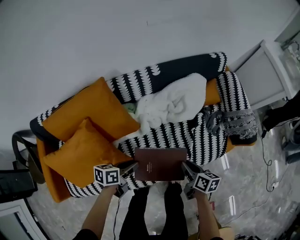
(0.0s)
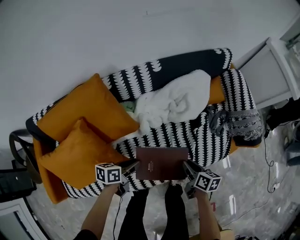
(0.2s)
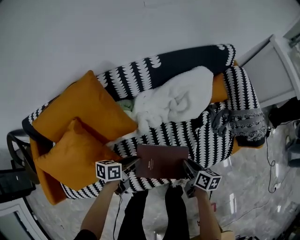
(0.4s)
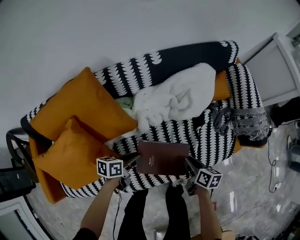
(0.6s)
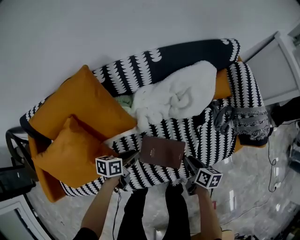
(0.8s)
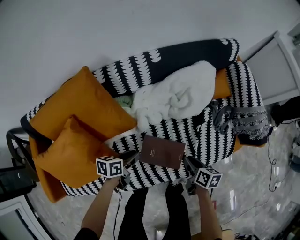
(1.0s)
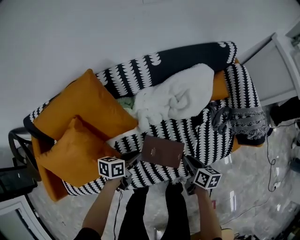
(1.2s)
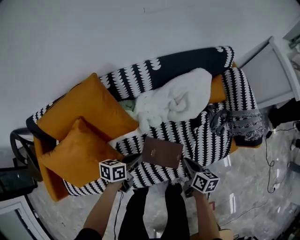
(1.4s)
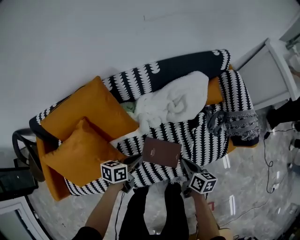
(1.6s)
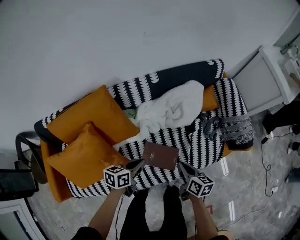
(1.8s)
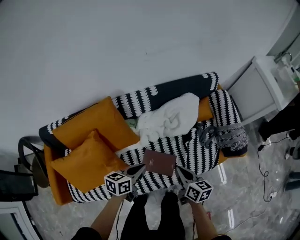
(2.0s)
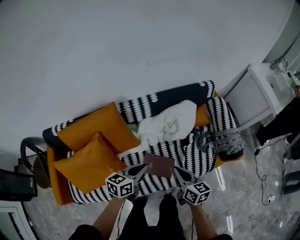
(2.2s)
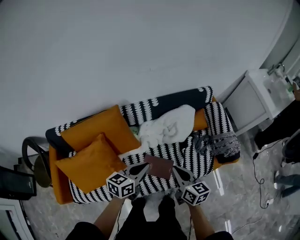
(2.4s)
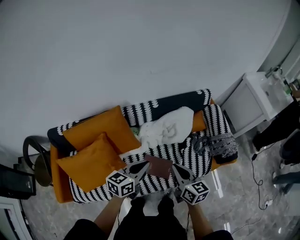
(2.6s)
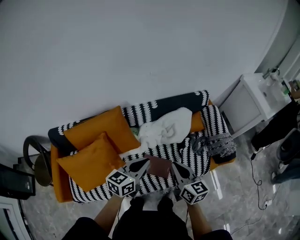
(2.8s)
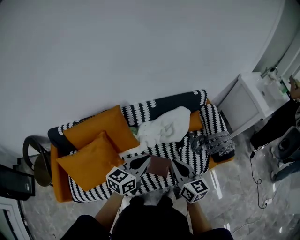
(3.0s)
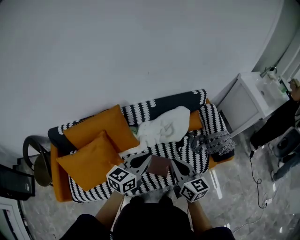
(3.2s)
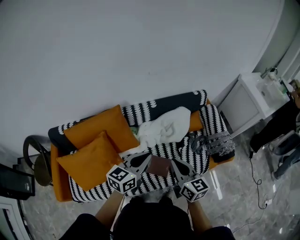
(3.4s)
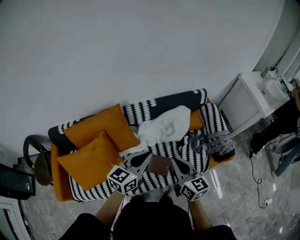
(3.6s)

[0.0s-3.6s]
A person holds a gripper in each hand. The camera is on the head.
0.0s to 1.8s: The right gripper goes downward and returns, approximately 15 cm each way, and closes; the left gripper travels downward and back again, approximately 15 cm each way, and closes.
1.8s to 3.6s: The two grippers go some 30 cm upward. The right gripper swivels approximately 30 degrees. Meanwhile the left gripper turns by approximately 40 degrees.

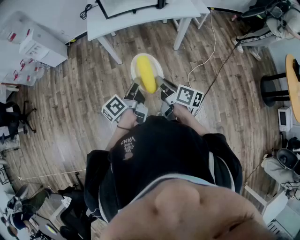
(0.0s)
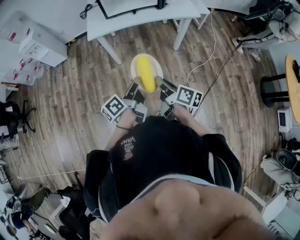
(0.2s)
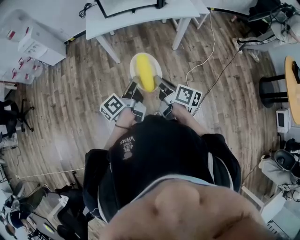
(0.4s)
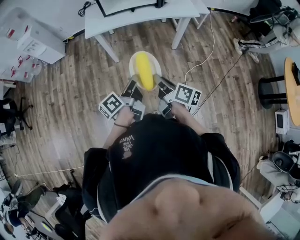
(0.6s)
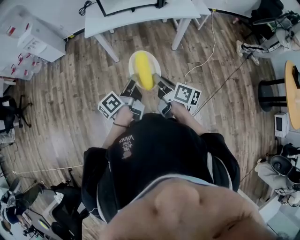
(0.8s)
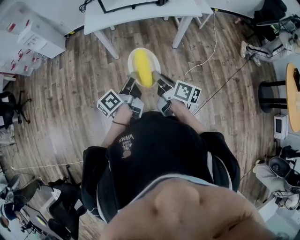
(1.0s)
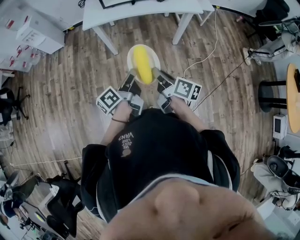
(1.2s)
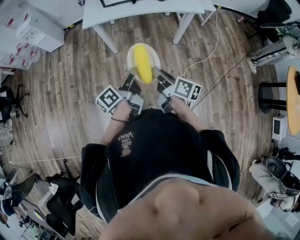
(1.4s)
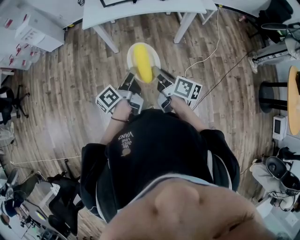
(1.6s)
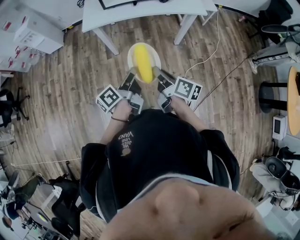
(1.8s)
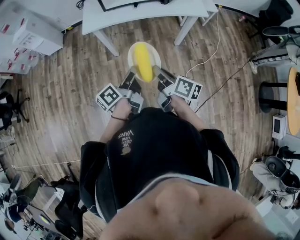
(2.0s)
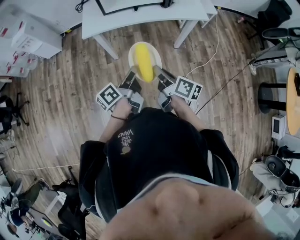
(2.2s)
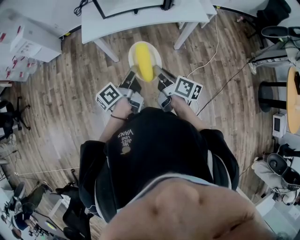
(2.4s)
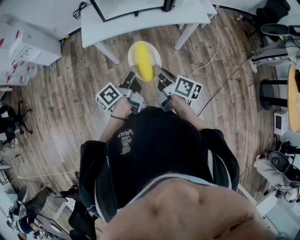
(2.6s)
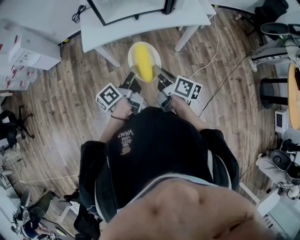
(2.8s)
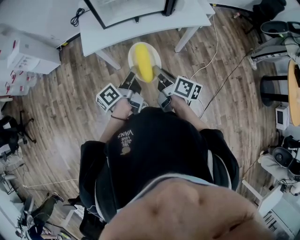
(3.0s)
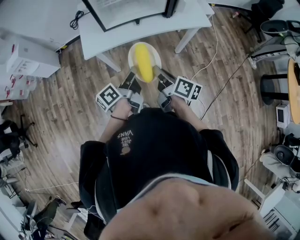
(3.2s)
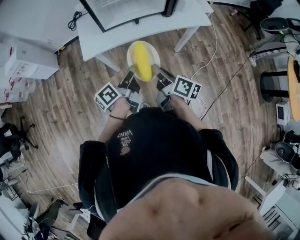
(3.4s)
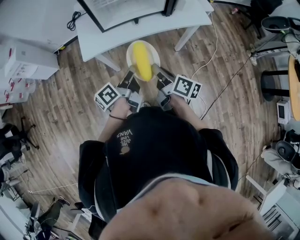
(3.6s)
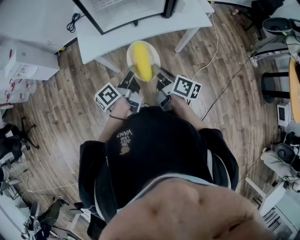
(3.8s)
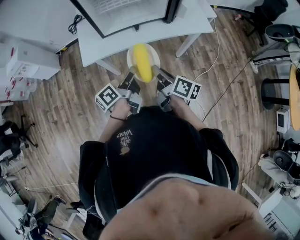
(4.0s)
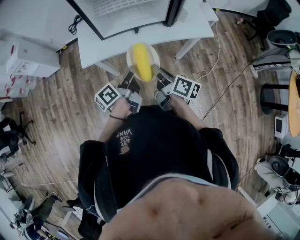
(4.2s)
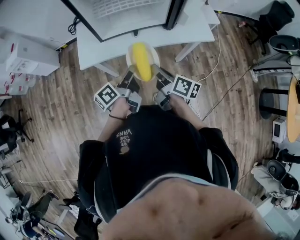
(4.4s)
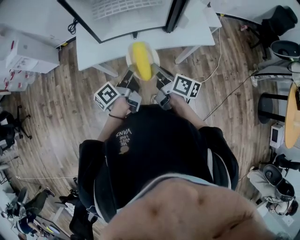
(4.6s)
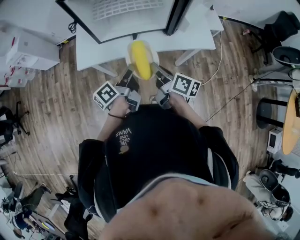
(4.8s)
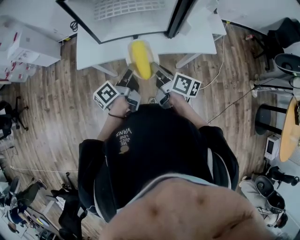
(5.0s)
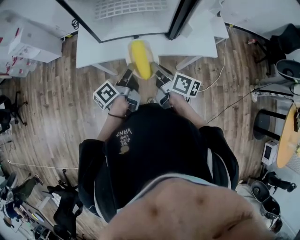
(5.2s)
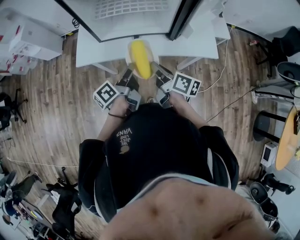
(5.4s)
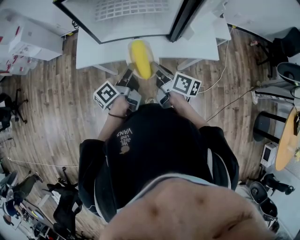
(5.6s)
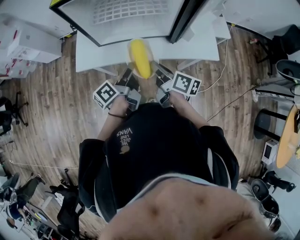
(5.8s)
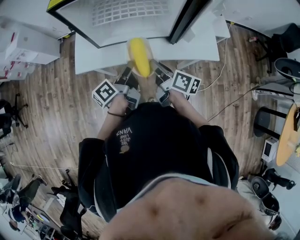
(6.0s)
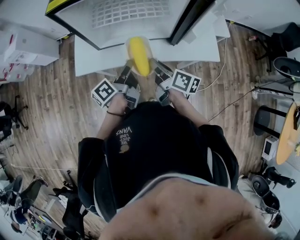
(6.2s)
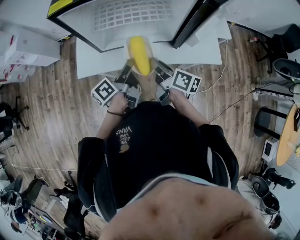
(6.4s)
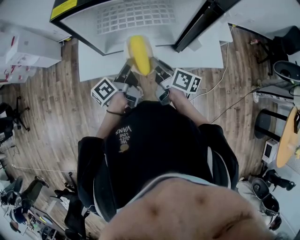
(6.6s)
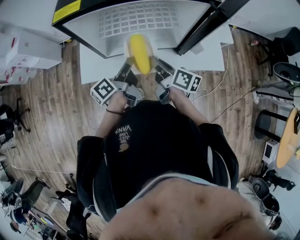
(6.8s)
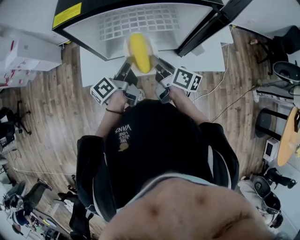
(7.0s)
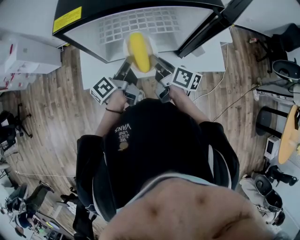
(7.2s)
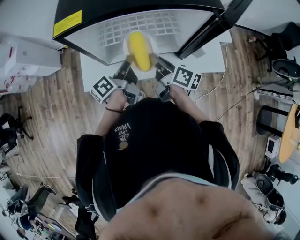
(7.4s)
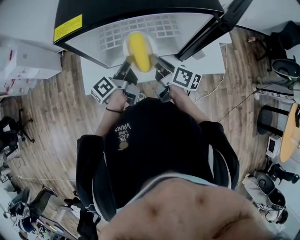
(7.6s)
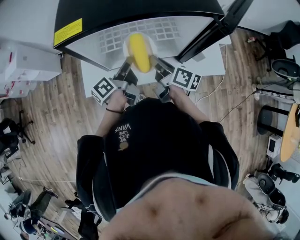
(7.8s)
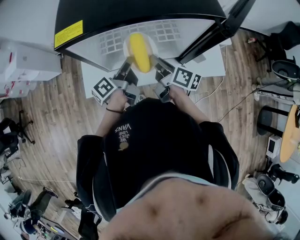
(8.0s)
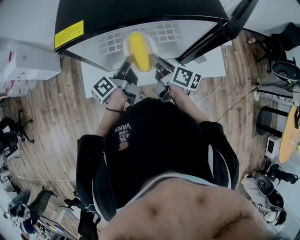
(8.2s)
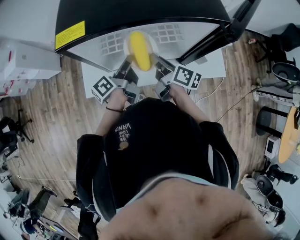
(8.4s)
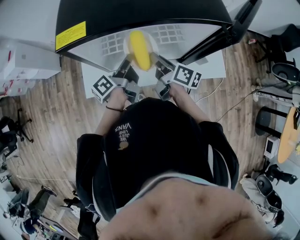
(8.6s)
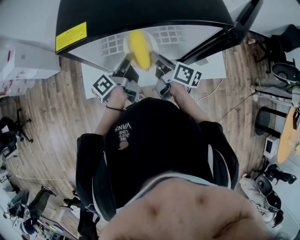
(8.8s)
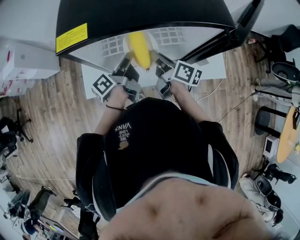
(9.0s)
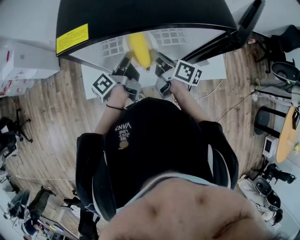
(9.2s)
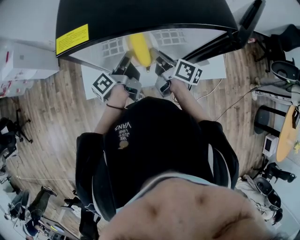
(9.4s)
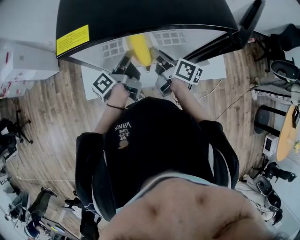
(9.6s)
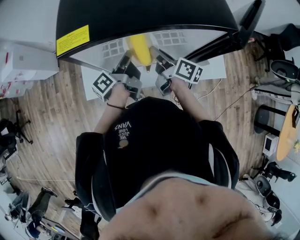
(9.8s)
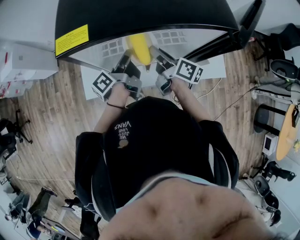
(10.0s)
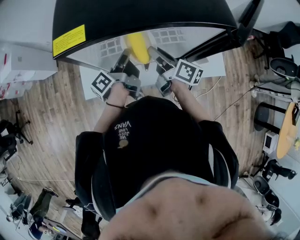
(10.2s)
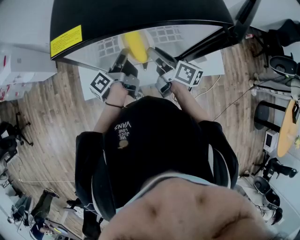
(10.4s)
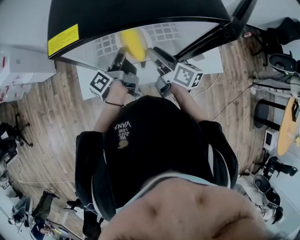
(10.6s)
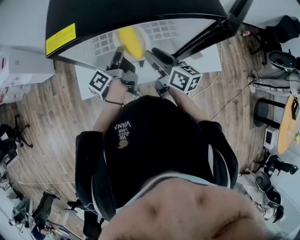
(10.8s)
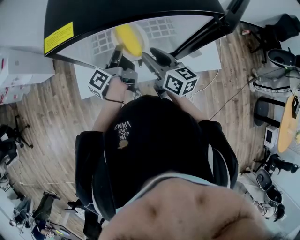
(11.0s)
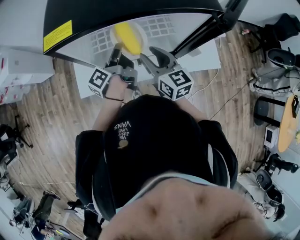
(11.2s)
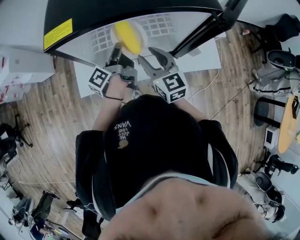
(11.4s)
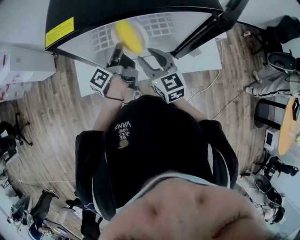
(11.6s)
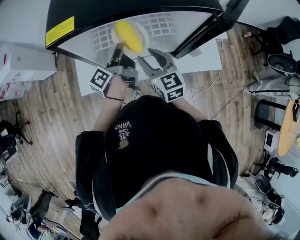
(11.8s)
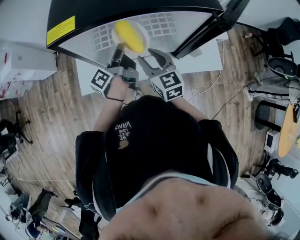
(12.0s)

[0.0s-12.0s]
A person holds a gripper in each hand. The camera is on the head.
0.0s to 1.6s: The right gripper changes place by about 5 cm.
1.6s to 3.0s: The right gripper shifts by about 20 cm.
3.0s to 4.4s: The right gripper shifts by roughly 15 cm.
4.4s to 6.0s: The right gripper changes place by approximately 15 cm.
6.0s to 7.6s: The right gripper moves about 15 cm.
9.0s to 10.4s: The right gripper opens up.
10.4s to 12.0s: The right gripper ends up about 5 cm from where it was, and twists about 50 degrees counterclockwise, seen from behind.

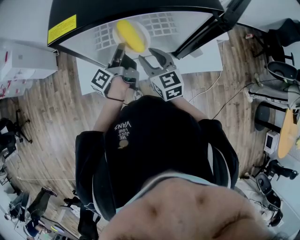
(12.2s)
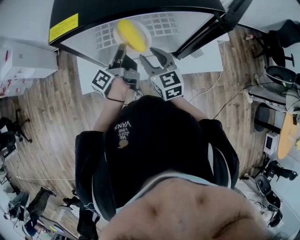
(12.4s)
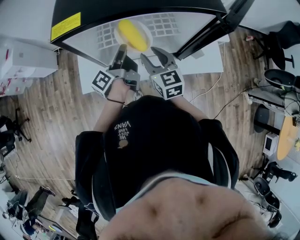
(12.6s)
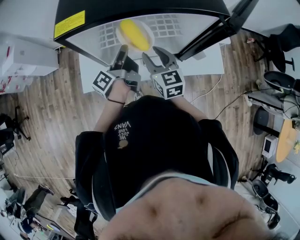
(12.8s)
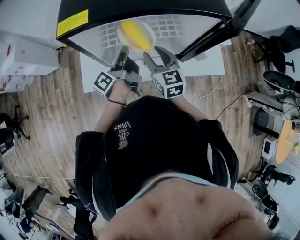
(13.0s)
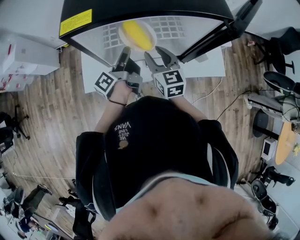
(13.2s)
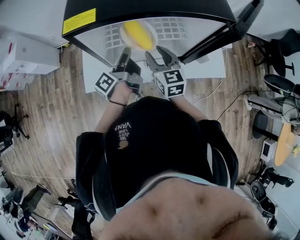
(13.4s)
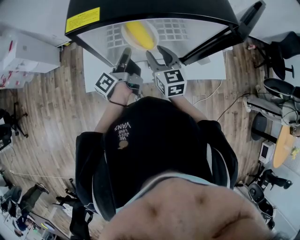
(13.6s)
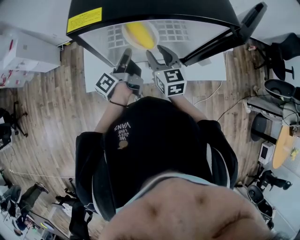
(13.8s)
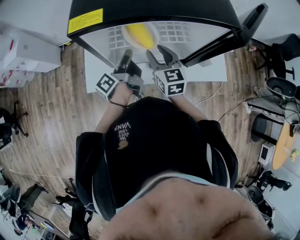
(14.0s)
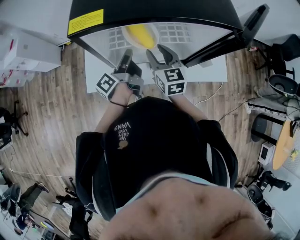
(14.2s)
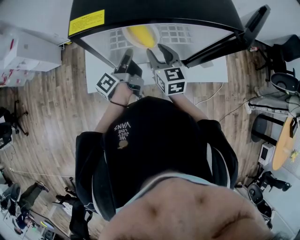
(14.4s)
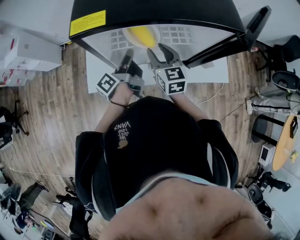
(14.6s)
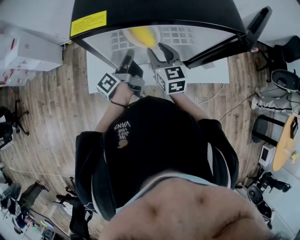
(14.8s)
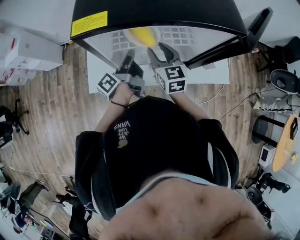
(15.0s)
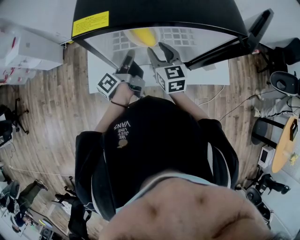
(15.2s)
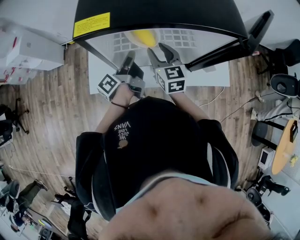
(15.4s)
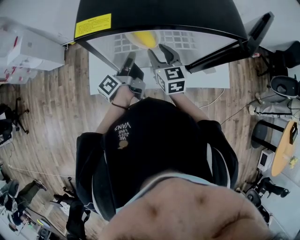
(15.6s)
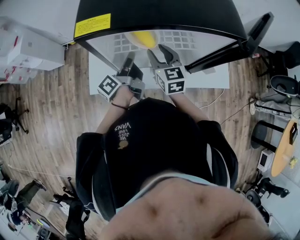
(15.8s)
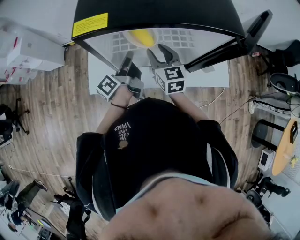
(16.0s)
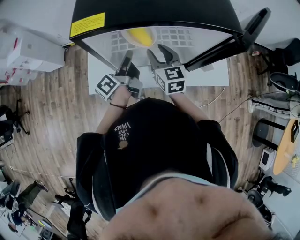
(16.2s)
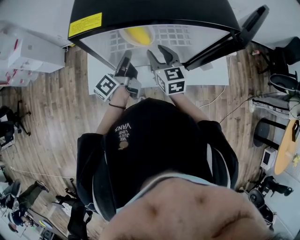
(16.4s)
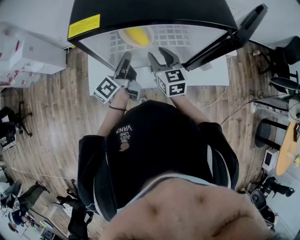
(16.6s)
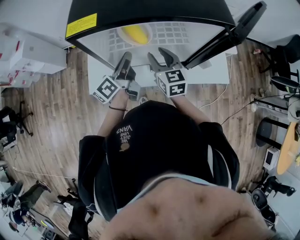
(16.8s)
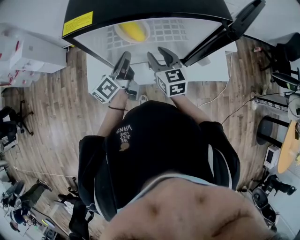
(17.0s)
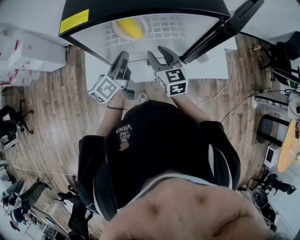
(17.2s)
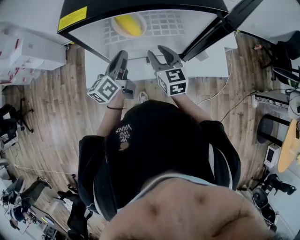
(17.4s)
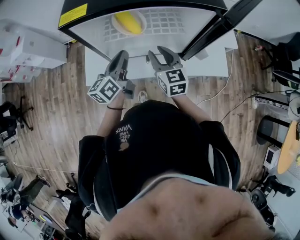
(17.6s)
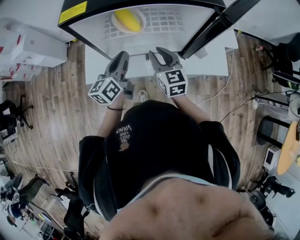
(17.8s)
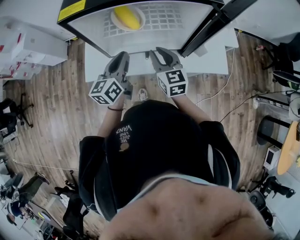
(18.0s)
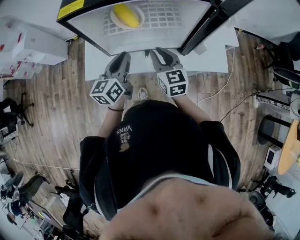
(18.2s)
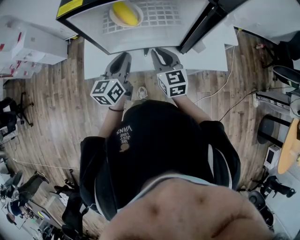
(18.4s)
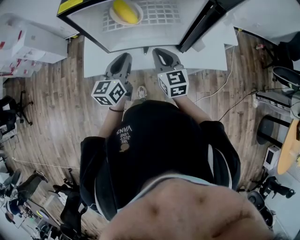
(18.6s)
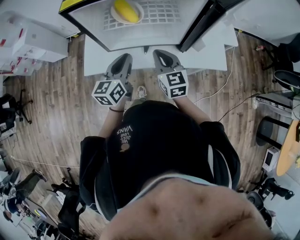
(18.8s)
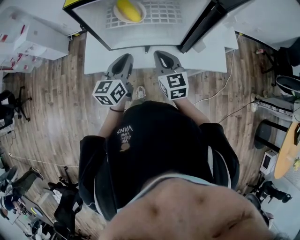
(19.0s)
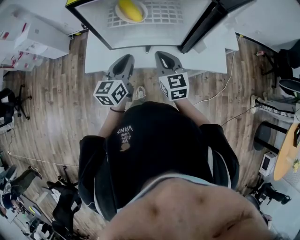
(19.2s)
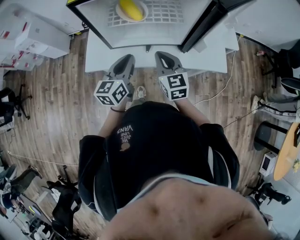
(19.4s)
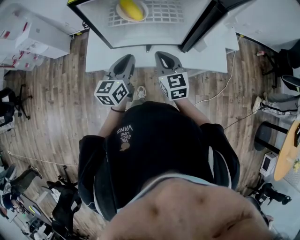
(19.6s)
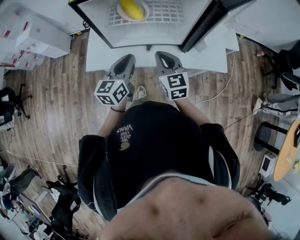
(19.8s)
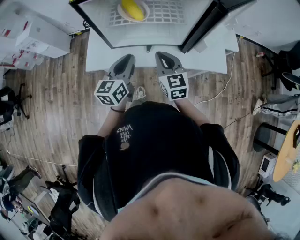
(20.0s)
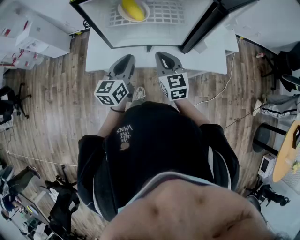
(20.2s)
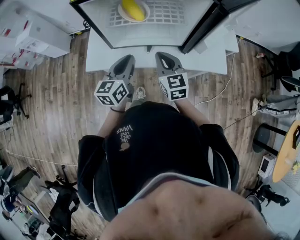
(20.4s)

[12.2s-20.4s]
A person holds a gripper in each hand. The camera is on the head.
15.4s to 17.2s: The right gripper shifts by approximately 5 cm.
17.2s to 18.8s: The right gripper shifts by approximately 10 cm, and closes up.
